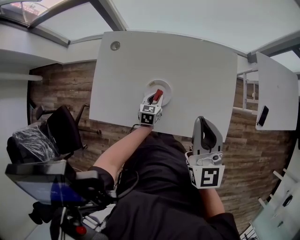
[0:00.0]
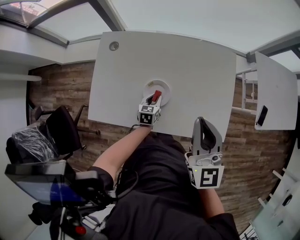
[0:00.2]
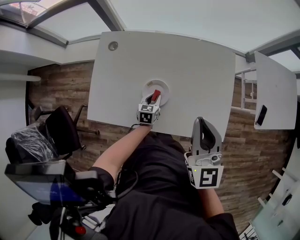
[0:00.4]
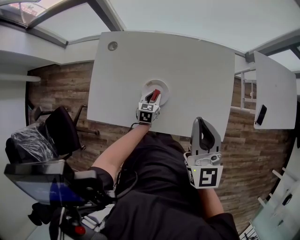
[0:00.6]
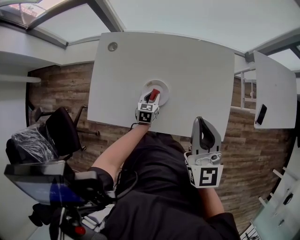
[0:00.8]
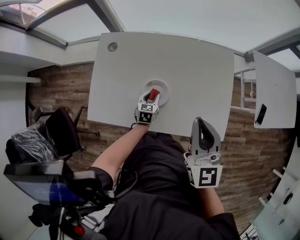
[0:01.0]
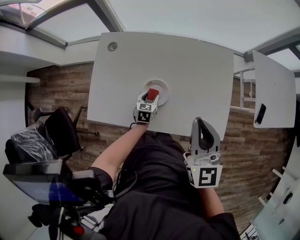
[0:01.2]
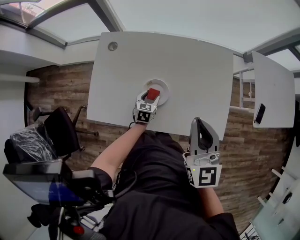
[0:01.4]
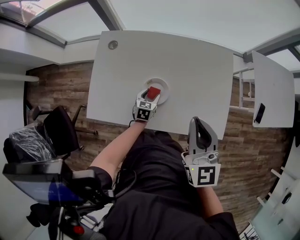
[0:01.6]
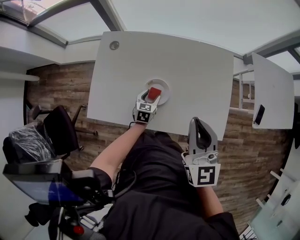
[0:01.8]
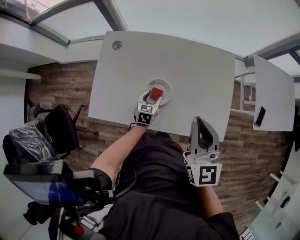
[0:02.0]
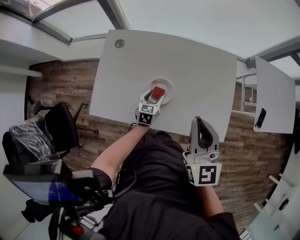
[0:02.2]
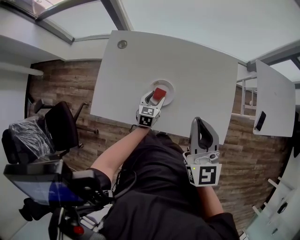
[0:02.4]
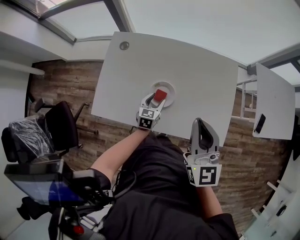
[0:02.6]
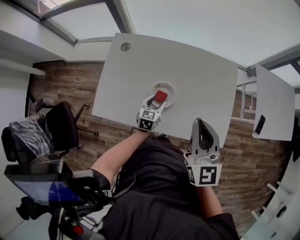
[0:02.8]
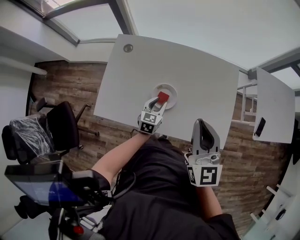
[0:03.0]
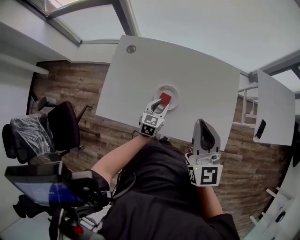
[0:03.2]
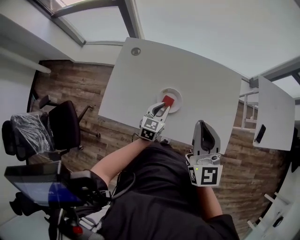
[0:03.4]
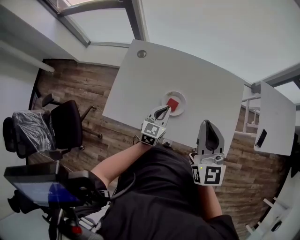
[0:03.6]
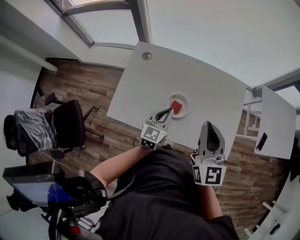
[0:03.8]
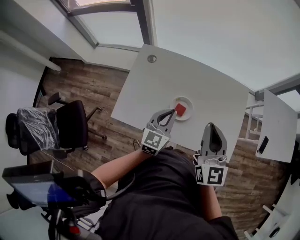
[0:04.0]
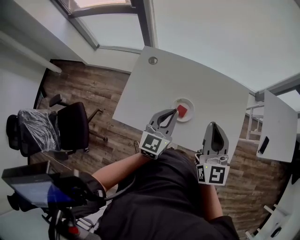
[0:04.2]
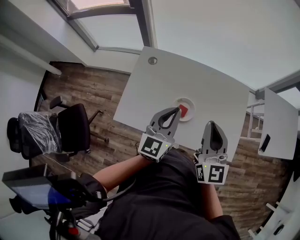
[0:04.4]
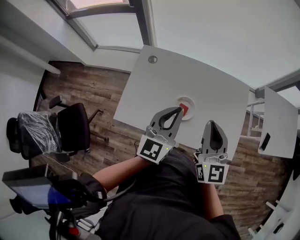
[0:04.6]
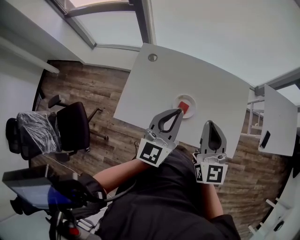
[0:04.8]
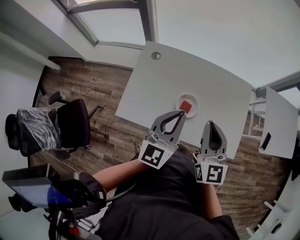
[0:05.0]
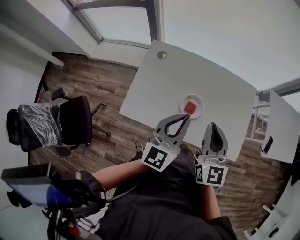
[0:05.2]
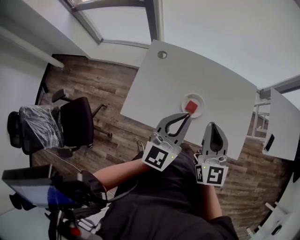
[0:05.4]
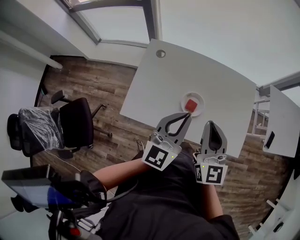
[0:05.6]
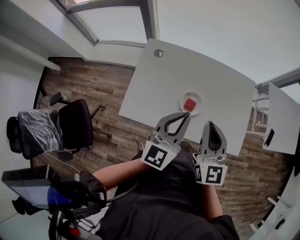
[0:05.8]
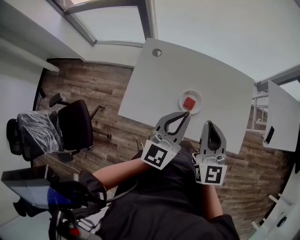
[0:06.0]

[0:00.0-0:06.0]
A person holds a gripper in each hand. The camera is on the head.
0:00.0 to 0:01.6: The left gripper opens its fingers.
0:01.6 to 0:03.0: The left gripper is displaced upward by roughly 10 cm.
0:03.0 to 0:04.4: The right gripper shifts about 5 cm to the left; the left gripper heads upward, covering roughly 25 cm, changes its angle by roughly 30 degrees, and closes its fingers.
0:04.4 to 0:06.0: The right gripper moves to the left, some 5 cm.

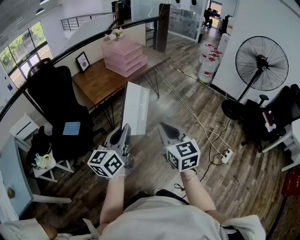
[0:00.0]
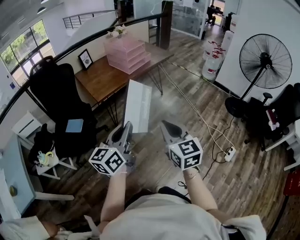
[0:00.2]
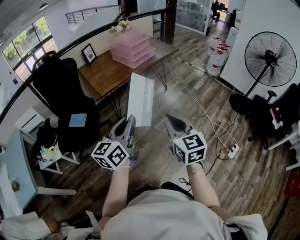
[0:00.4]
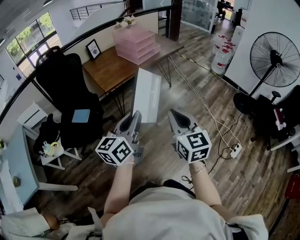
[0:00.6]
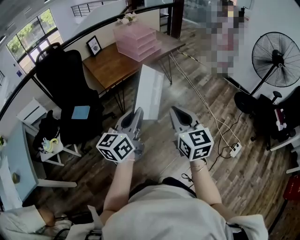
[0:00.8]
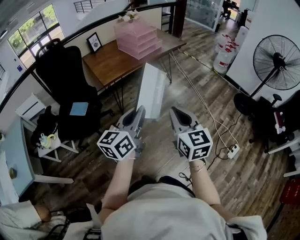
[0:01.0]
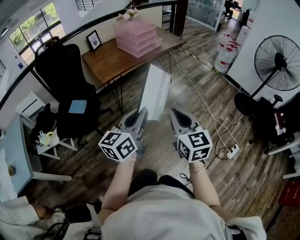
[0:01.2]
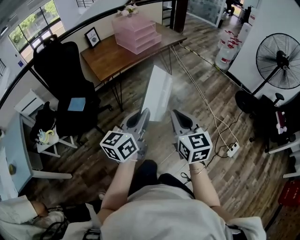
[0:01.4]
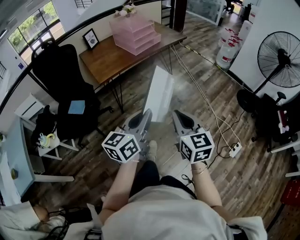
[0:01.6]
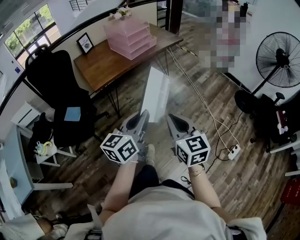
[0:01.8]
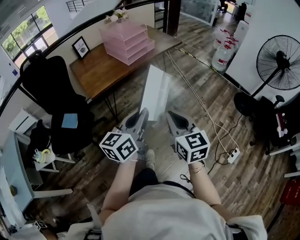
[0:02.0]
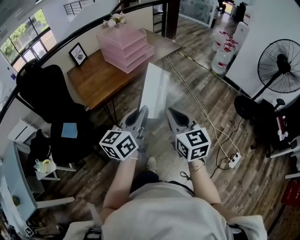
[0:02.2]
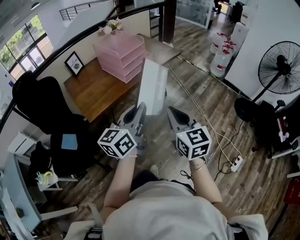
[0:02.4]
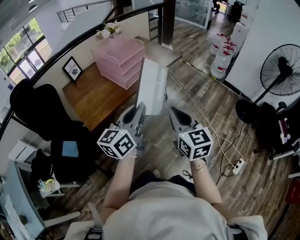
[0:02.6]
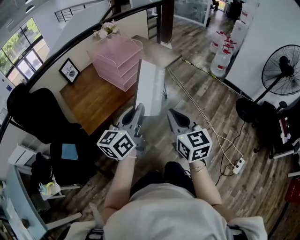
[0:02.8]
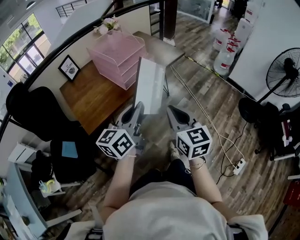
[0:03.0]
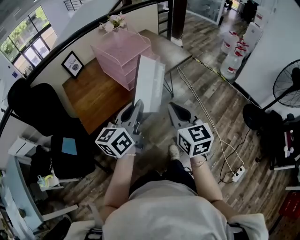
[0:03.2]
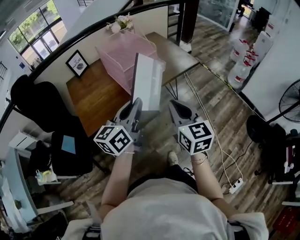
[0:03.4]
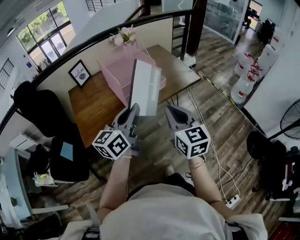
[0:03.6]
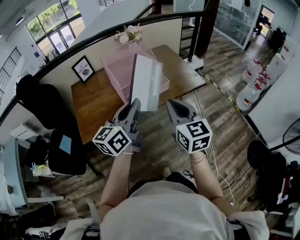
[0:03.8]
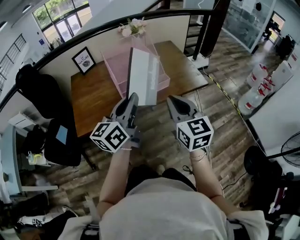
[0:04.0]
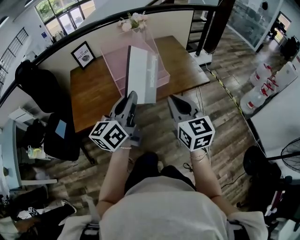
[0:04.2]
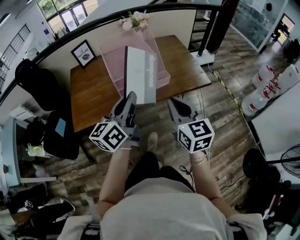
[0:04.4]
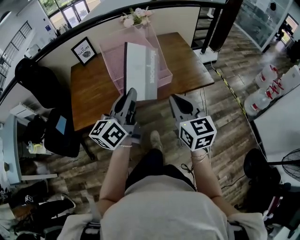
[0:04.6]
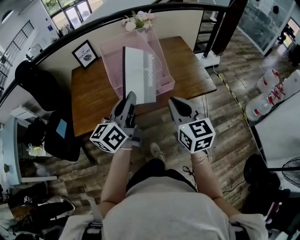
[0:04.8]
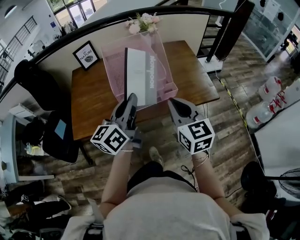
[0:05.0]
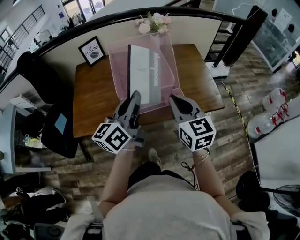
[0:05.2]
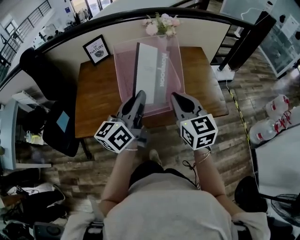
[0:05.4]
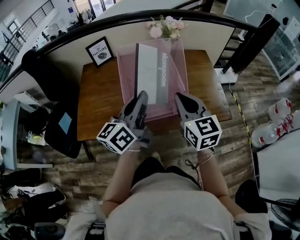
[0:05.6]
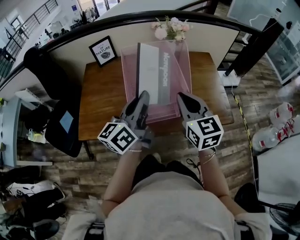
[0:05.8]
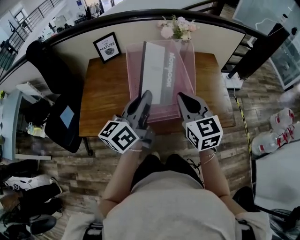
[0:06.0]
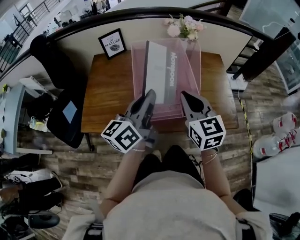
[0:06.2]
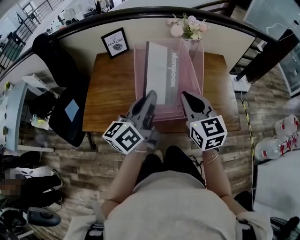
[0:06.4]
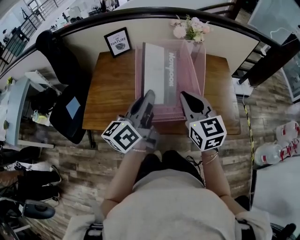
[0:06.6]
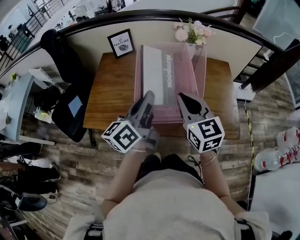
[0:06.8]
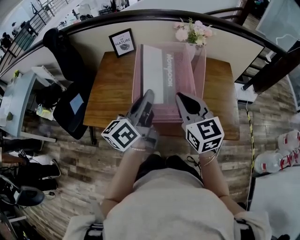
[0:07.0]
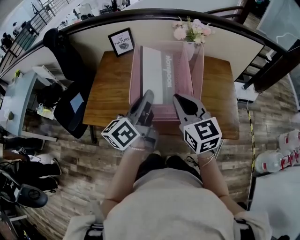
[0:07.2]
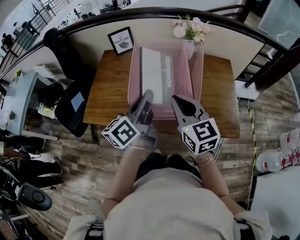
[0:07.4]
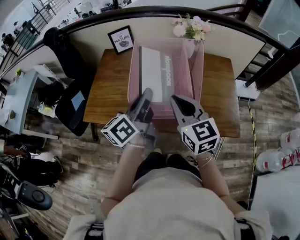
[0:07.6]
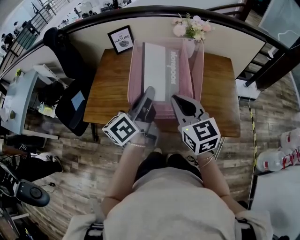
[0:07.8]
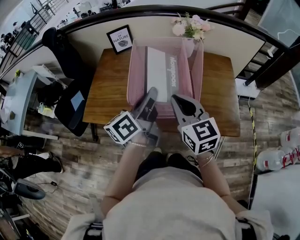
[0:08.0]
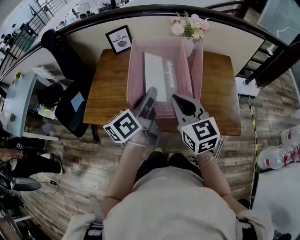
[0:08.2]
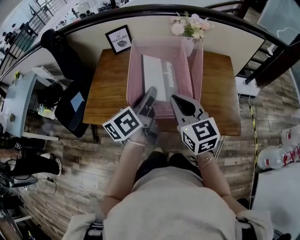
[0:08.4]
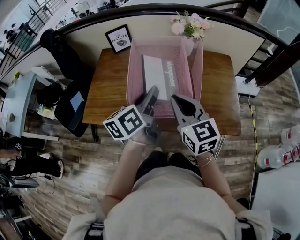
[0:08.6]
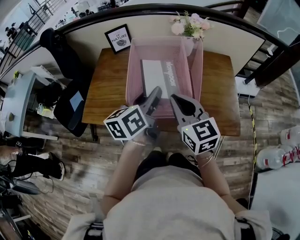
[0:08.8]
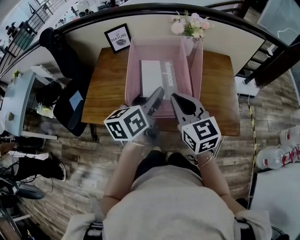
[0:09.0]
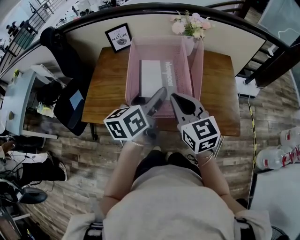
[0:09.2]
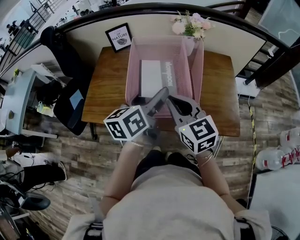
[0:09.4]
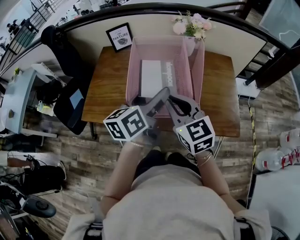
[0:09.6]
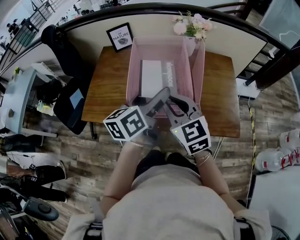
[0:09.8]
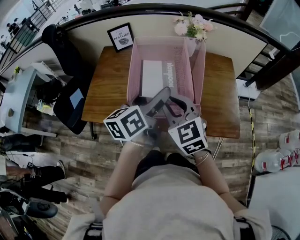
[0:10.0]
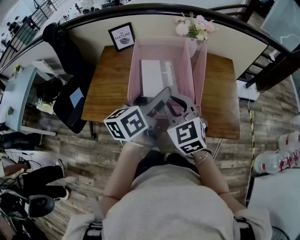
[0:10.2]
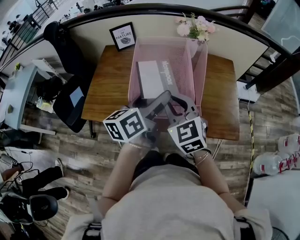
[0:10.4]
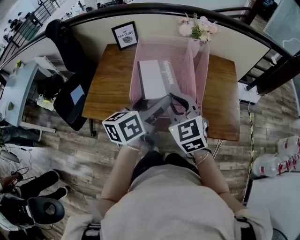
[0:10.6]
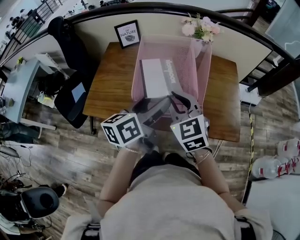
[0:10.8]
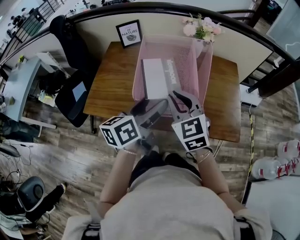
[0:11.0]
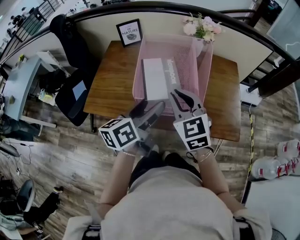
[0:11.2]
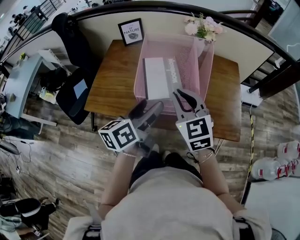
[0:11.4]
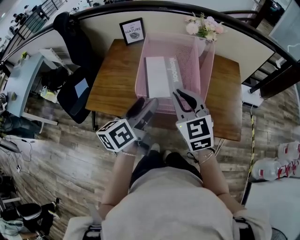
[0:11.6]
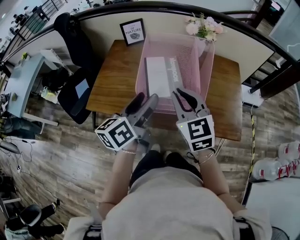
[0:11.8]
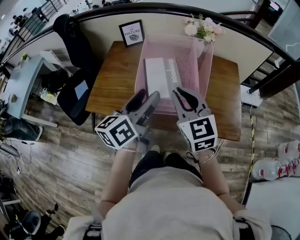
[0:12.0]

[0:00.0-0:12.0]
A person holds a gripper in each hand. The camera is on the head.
0:00.0 to 0:01.6: The right gripper is displaced to the right by about 5 cm. The left gripper is displaced to the right by some 10 cm.
0:01.6 to 0:03.0: The grippers both shift forward by roughly 35 cm.
0:03.0 to 0:04.4: The left gripper shifts by some 20 cm, and rotates roughly 30 degrees. Meanwhile the right gripper ends up some 25 cm from where it was, and turns by roughly 30 degrees.
0:04.4 to 0:06.0: The grippers both shift forward by about 20 cm.
0:06.0 to 0:07.6: The grippers stay close to where they were, moving slightly.
0:07.6 to 0:09.0: The left gripper swivels approximately 20 degrees, and opens.
0:09.0 to 0:10.4: The left gripper opens its fingers. The right gripper turns by about 20 degrees.
0:10.4 to 0:12.0: The left gripper shifts by some 5 cm.

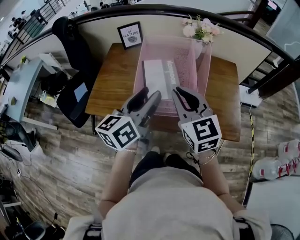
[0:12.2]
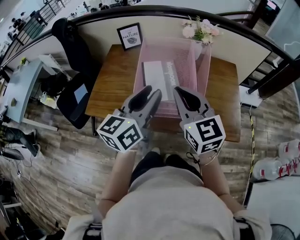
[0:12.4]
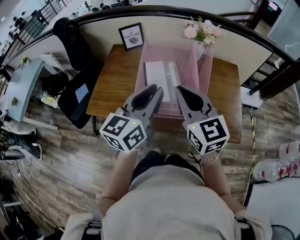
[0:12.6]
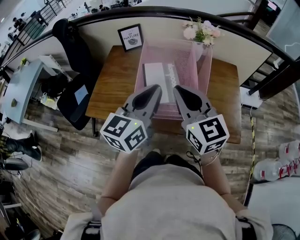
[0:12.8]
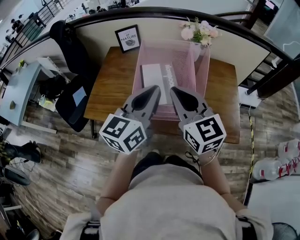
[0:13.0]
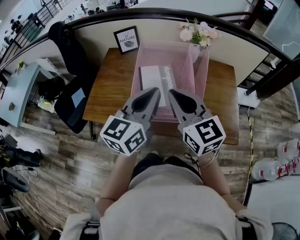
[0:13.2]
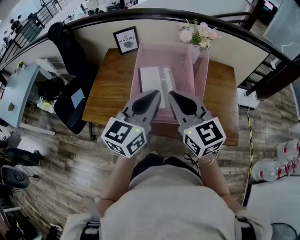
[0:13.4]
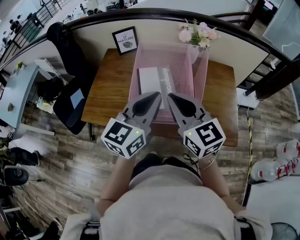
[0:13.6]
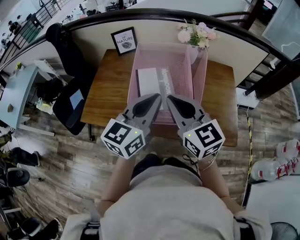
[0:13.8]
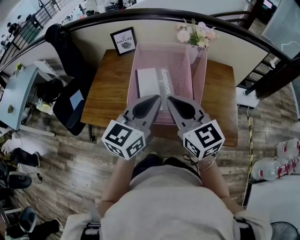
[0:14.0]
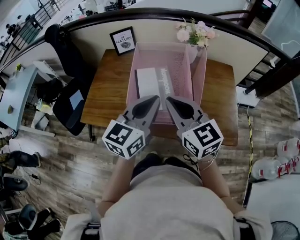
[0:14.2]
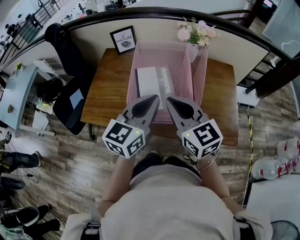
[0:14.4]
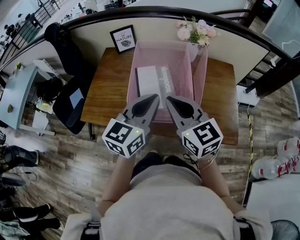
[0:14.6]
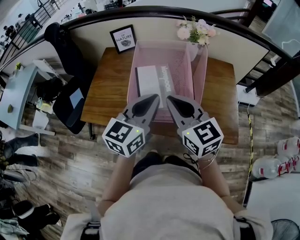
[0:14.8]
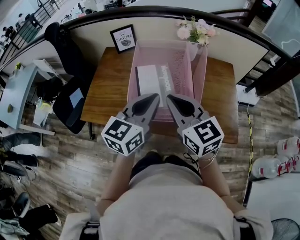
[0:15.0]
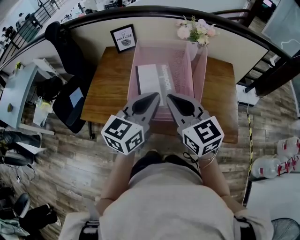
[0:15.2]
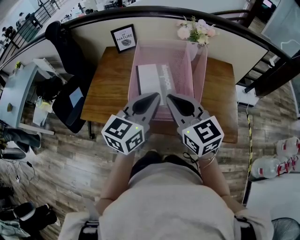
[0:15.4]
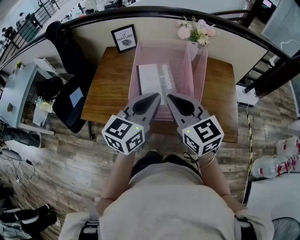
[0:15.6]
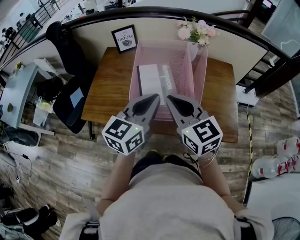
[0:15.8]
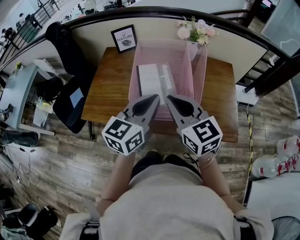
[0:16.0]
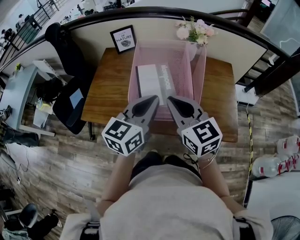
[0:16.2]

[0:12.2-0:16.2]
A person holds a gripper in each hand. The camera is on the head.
0:12.2 to 0:13.6: The left gripper changes its angle by roughly 20 degrees, and closes its fingers.
0:13.6 to 0:14.8: The grippers move only a little.
0:14.8 to 0:16.2: Both grippers stay about where they are.

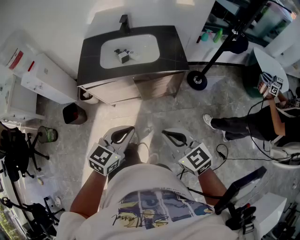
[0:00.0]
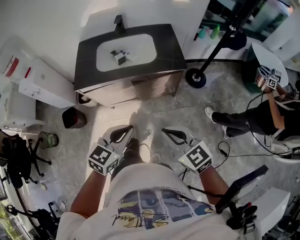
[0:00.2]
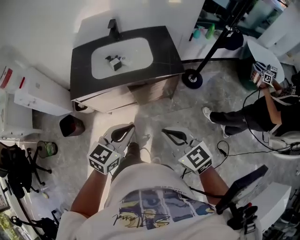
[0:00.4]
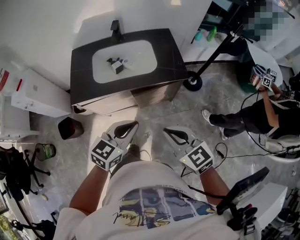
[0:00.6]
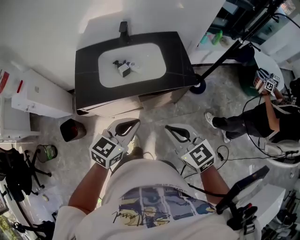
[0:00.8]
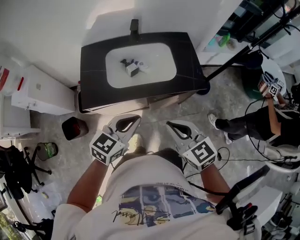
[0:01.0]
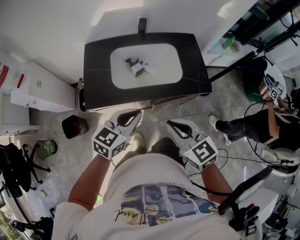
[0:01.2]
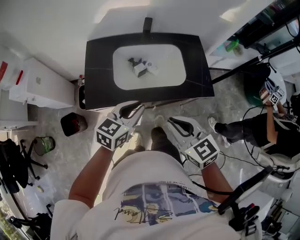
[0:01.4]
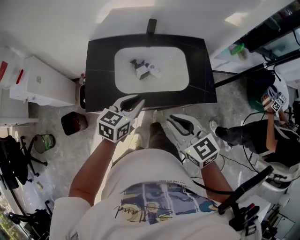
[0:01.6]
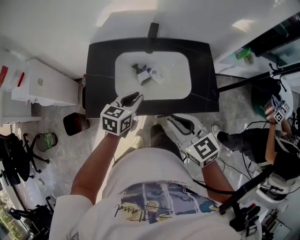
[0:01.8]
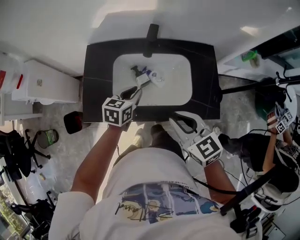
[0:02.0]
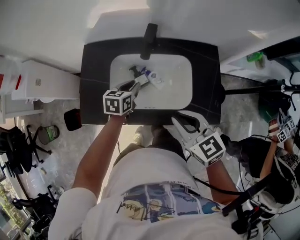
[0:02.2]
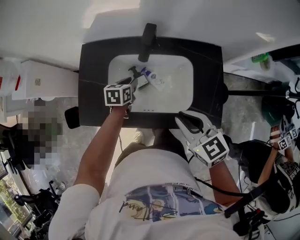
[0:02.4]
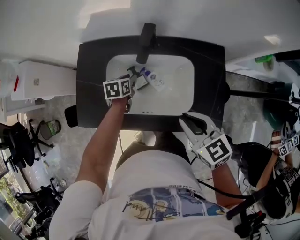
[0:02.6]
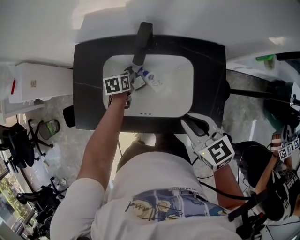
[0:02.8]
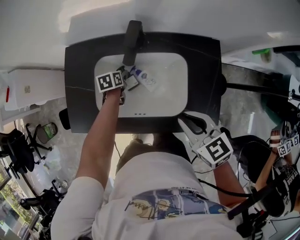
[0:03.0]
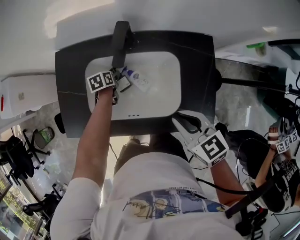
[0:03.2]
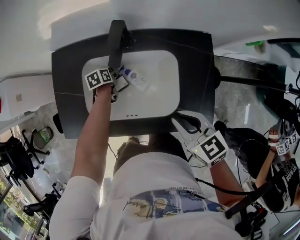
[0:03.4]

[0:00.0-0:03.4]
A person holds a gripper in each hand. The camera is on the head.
0:00.0 to 0:01.6: The grippers both shift forward and to the left by about 35 cm.
0:01.6 to 0:03.4: The left gripper travels downward and forward by roughly 40 cm, tips its fingers downward by roughly 30 degrees, and opens. Meanwhile the right gripper shifts some 25 cm forward, to the right and downward.
